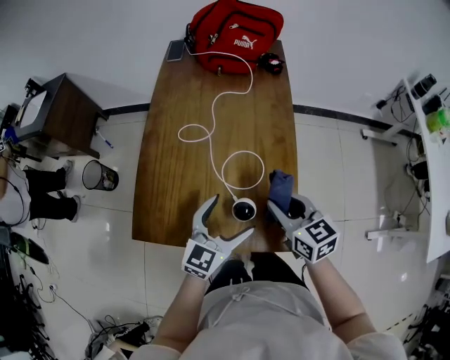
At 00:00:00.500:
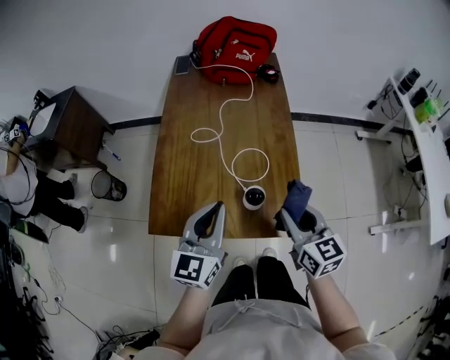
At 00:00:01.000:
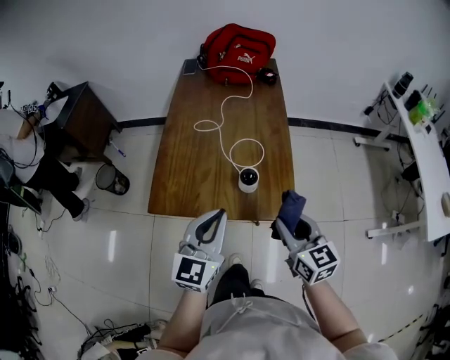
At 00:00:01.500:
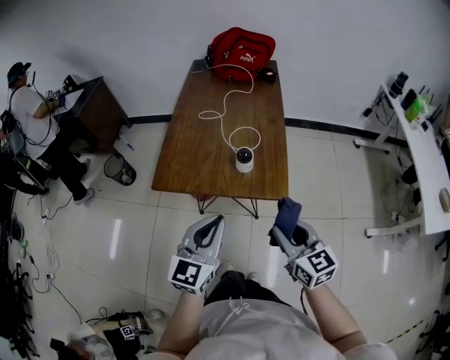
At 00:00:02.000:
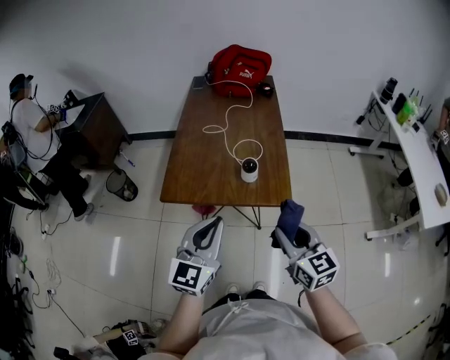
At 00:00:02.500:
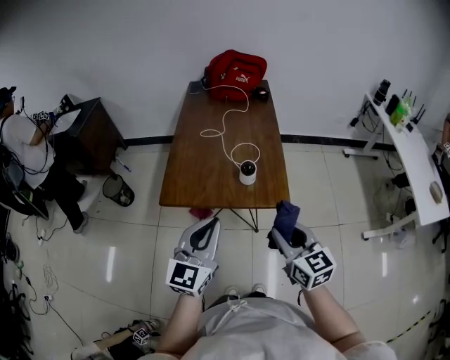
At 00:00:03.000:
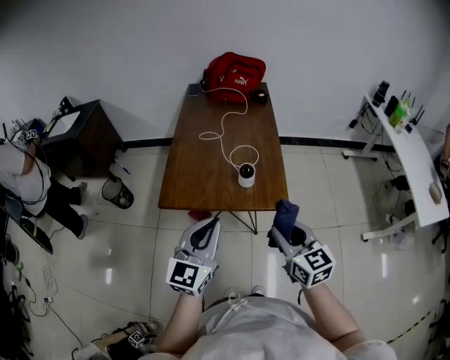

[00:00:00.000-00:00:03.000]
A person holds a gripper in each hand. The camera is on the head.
00:00:00.000 to 00:00:01.500: The left gripper is displaced backward and upward by approximately 30 cm, and closes up; the right gripper goes some 30 cm backward.
00:00:01.500 to 00:00:03.000: The right gripper moves about 5 cm; the left gripper shifts by about 5 cm.

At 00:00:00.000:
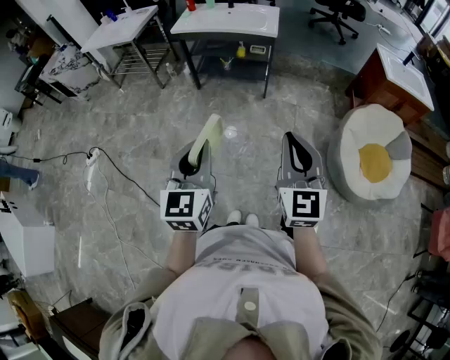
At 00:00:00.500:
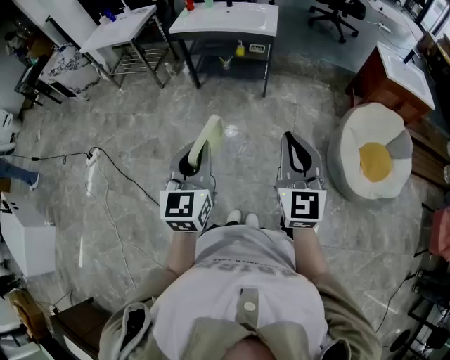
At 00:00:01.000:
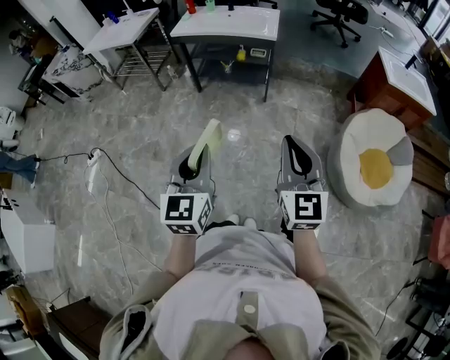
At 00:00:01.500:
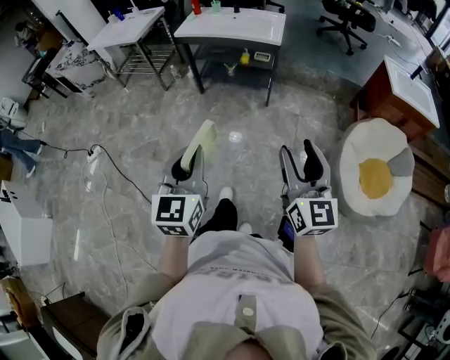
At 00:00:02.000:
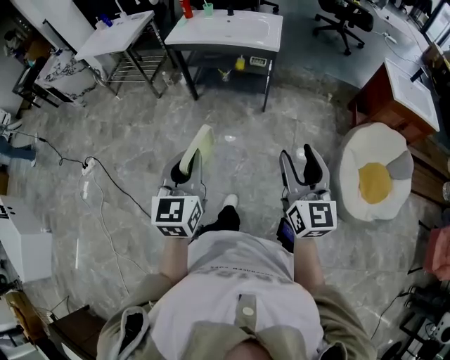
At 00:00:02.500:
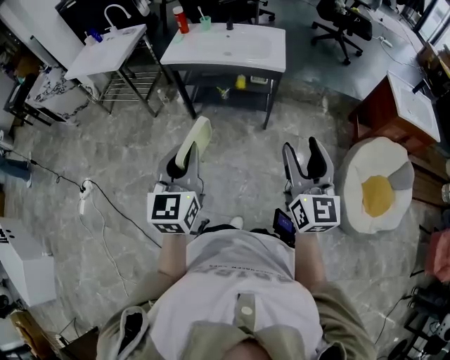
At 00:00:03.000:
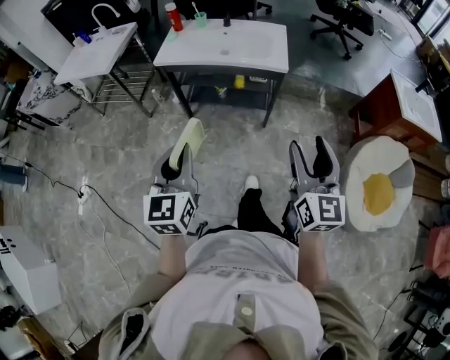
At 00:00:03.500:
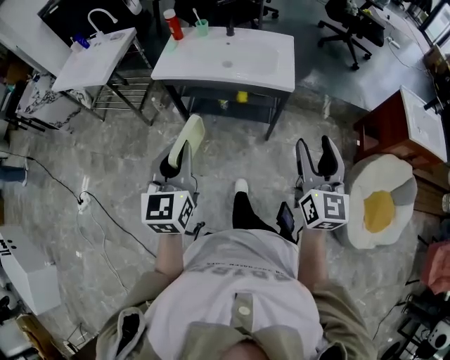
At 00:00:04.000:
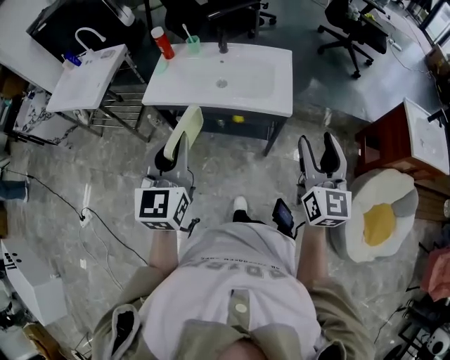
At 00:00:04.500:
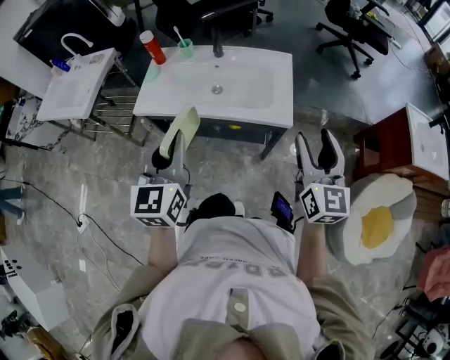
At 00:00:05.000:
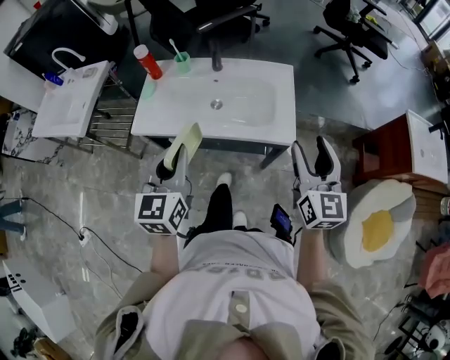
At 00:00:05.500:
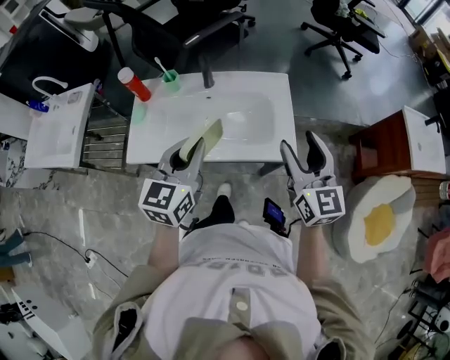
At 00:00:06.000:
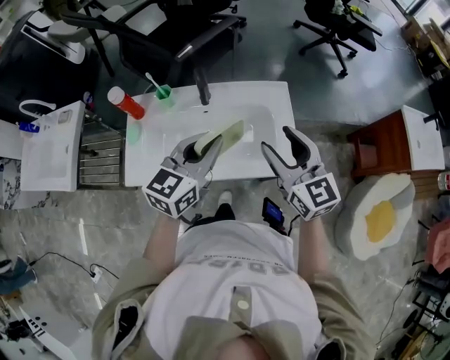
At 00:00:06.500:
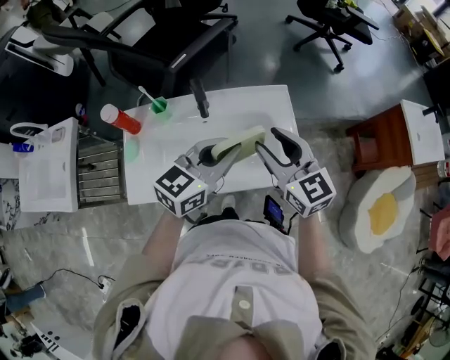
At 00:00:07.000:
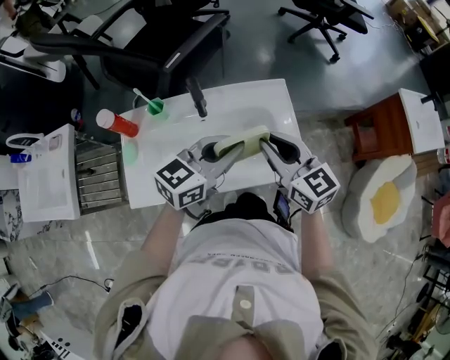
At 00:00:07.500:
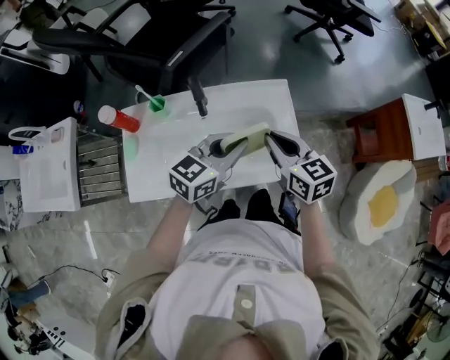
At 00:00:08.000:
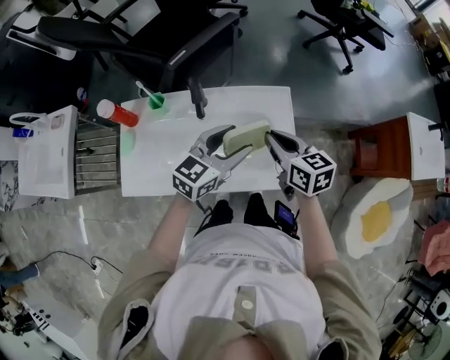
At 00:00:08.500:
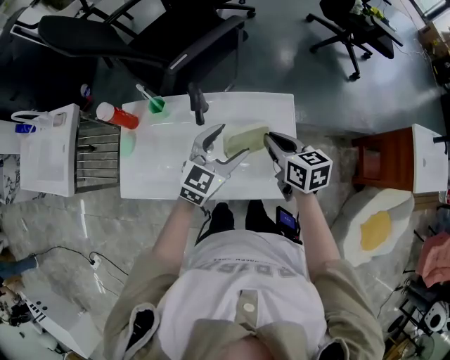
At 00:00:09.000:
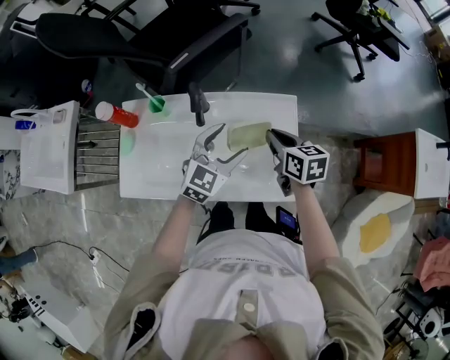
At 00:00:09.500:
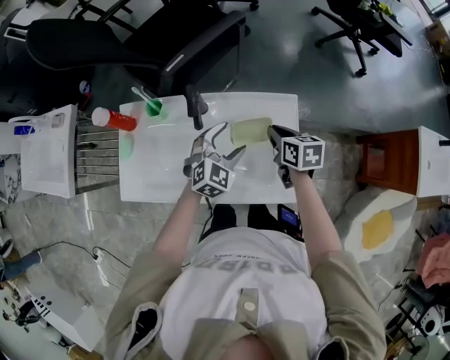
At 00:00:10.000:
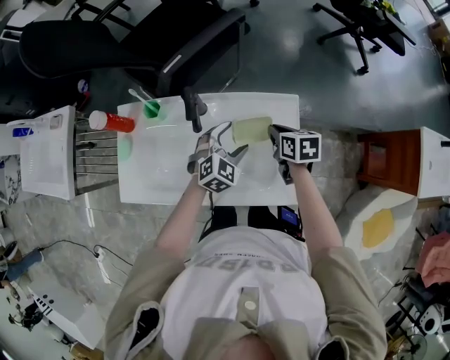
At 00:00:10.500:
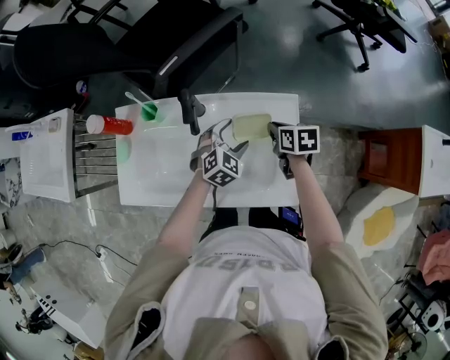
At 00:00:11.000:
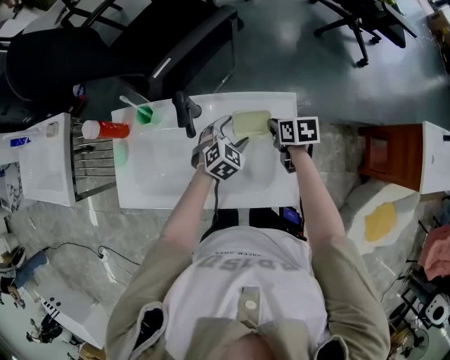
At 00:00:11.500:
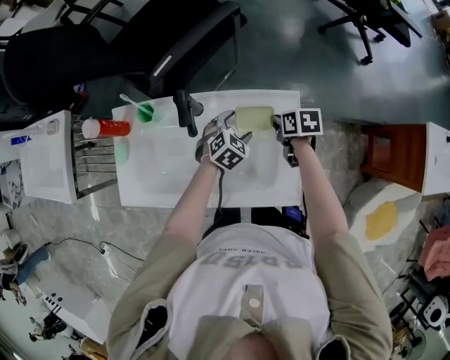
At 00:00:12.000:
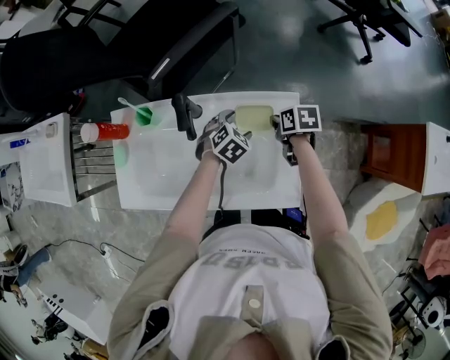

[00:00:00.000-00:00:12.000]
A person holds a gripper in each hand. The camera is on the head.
00:00:00.000 to 00:00:02.000: Both grippers move forward, roughly 10 cm. The right gripper opens up.
00:00:02.000 to 00:00:04.000: The two grippers travel together, forward, some 50 cm.
00:00:04.000 to 00:00:06.000: The left gripper is displaced forward by about 35 cm, and changes its angle by approximately 40 degrees. The right gripper moves forward and to the left, some 30 cm.
00:00:06.000 to 00:00:08.000: The right gripper heads downward and forward, covering about 15 cm, changes its angle by some 30 degrees, and closes up; the left gripper shifts roughly 15 cm forward, downward and to the right, and opens up.
00:00:08.000 to 00:00:10.000: The two grippers go about 15 cm downward and forward. The right gripper changes its angle by approximately 20 degrees; the left gripper swivels about 40 degrees.
00:00:10.000 to 00:00:12.000: Both grippers travel together downward, about 5 cm. The left gripper rotates roughly 20 degrees.

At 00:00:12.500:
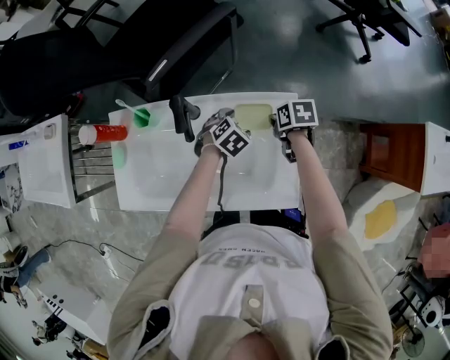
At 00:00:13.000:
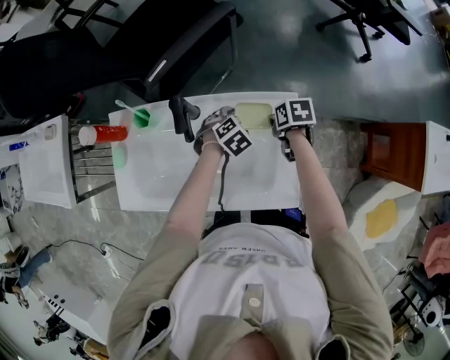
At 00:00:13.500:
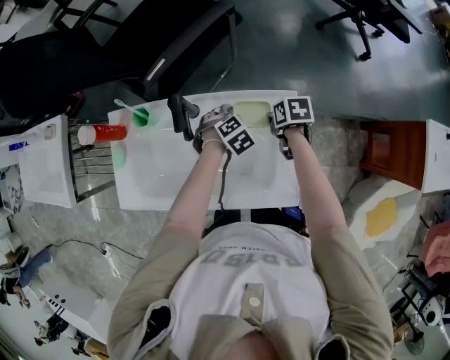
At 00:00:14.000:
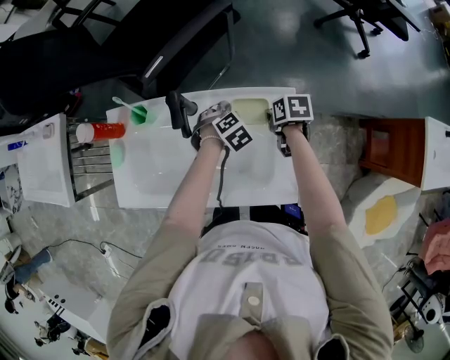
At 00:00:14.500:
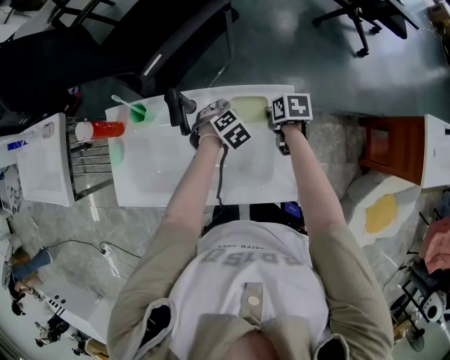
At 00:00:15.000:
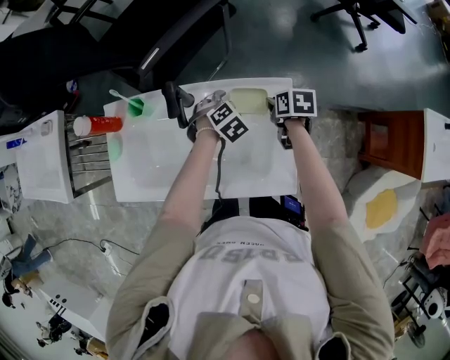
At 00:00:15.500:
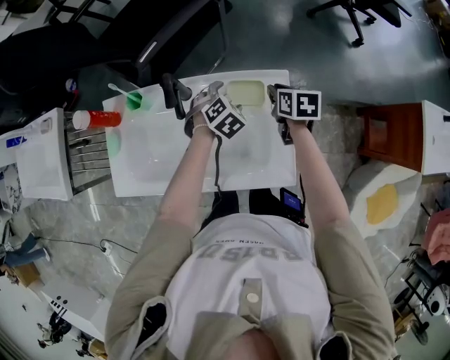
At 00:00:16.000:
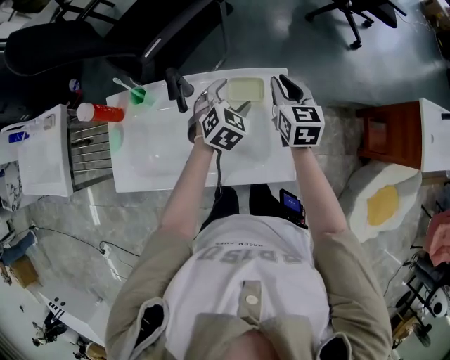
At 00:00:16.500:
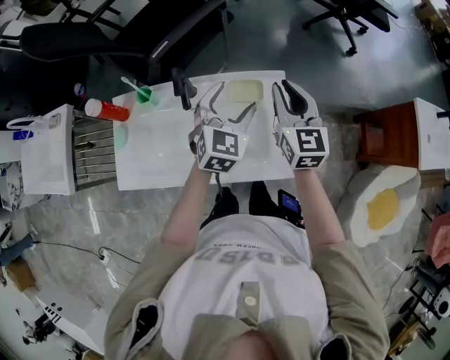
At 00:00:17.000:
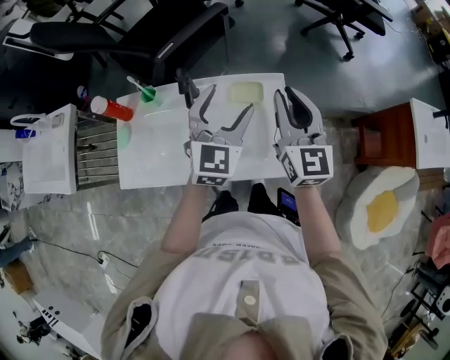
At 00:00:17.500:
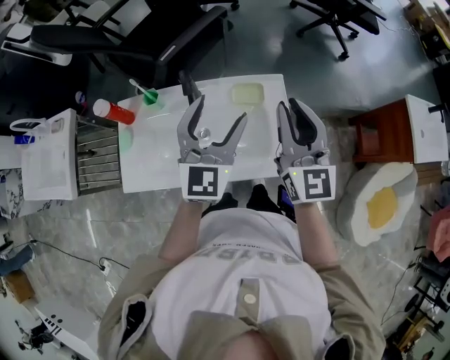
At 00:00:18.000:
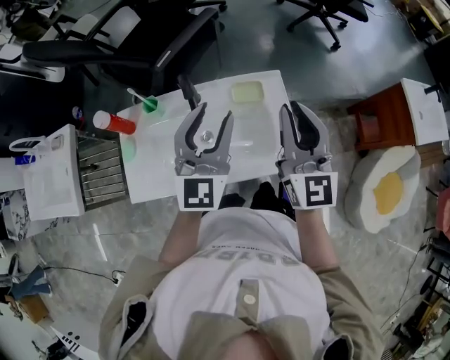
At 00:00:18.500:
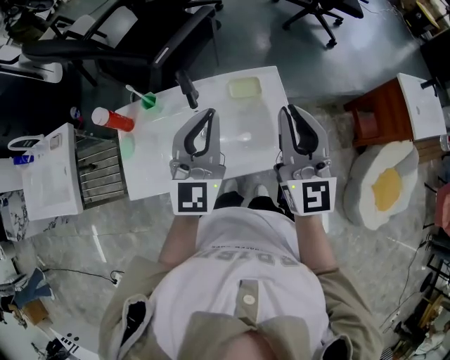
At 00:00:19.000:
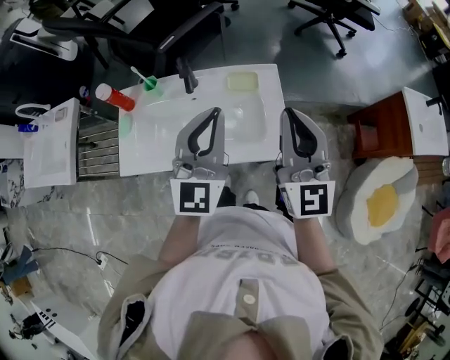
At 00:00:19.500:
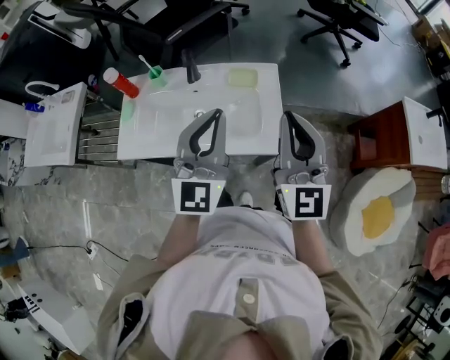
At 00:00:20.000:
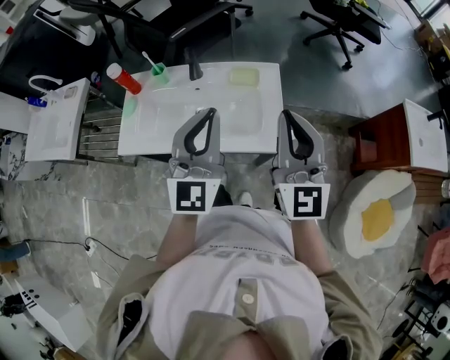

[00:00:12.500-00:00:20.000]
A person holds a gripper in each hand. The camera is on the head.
00:00:12.500 to 00:00:14.500: The grippers make only small movements.
00:00:14.500 to 00:00:16.500: Both grippers travel together upward, about 25 cm. The left gripper tilts its fingers roughly 50 degrees upward. The right gripper angles its fingers upward, by roughly 50 degrees.
00:00:16.500 to 00:00:18.000: The right gripper travels backward and upward by roughly 15 cm; the left gripper heads upward, backward and to the left, covering about 15 cm, rotates about 30 degrees, and closes up.
00:00:18.000 to 00:00:20.000: Both grippers move backward, approximately 15 cm. The left gripper closes its fingers.

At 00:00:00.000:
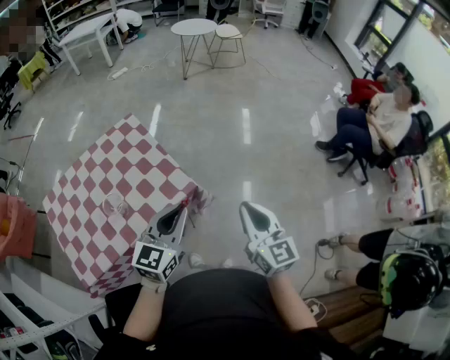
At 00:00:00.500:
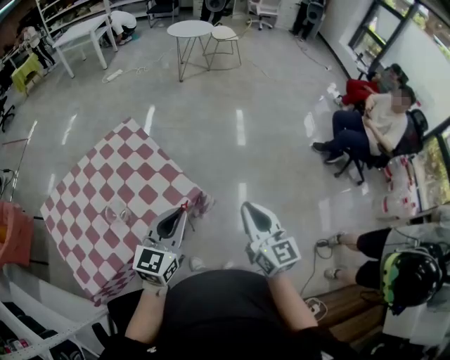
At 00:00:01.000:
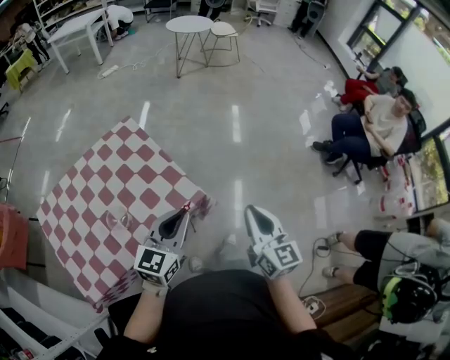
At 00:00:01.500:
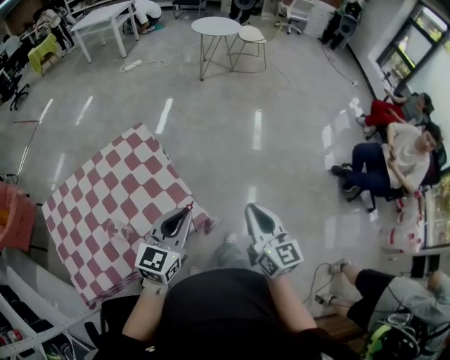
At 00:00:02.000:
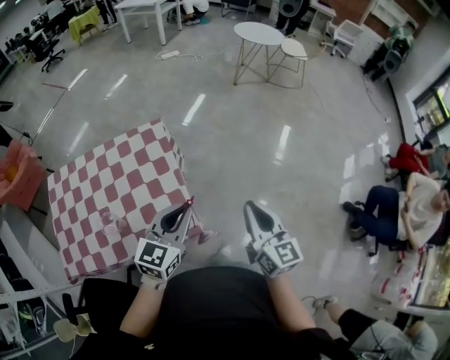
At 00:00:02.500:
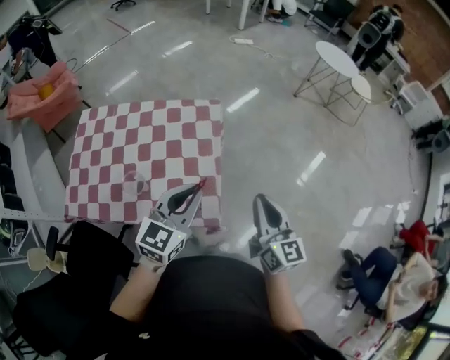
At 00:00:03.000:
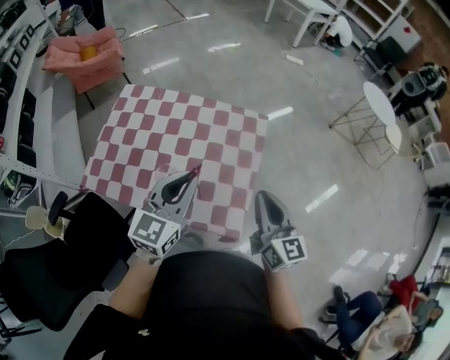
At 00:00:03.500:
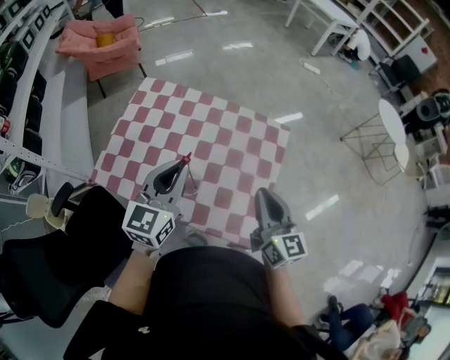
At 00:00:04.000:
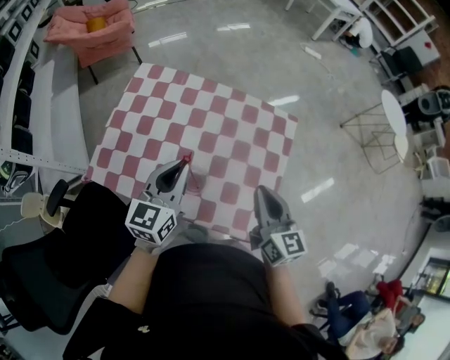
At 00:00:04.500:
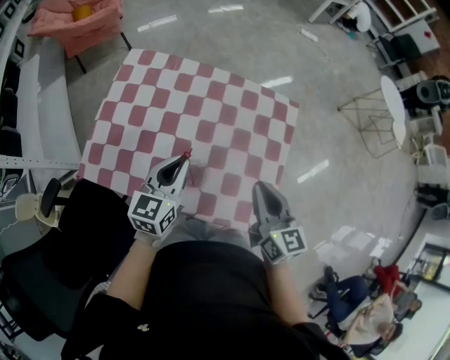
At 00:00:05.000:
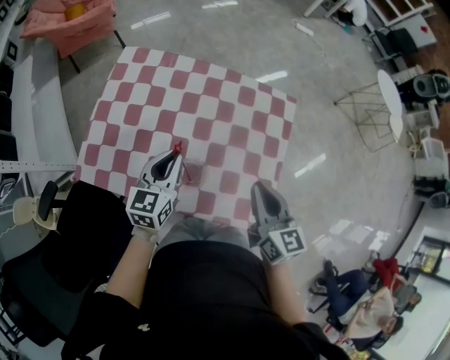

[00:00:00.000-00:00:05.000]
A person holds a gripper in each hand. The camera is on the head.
00:00:00.000 to 00:00:02.500: The left gripper shifts by about 25 cm, and turns by approximately 30 degrees. Meanwhile the right gripper shifts by approximately 30 cm, and rotates roughly 40 degrees.
00:00:02.500 to 00:00:05.000: The left gripper travels to the left, downward and forward by about 40 cm, and swivels roughly 30 degrees. The right gripper is displaced to the left and forward by roughly 30 cm, and rotates about 20 degrees.
